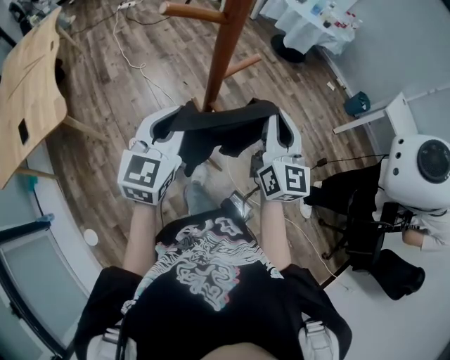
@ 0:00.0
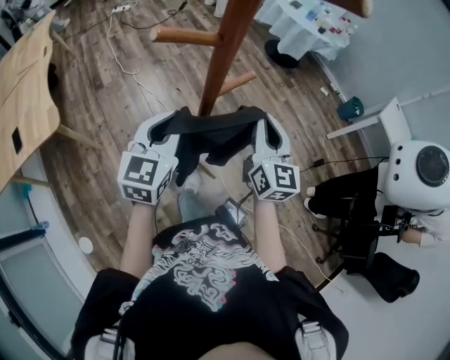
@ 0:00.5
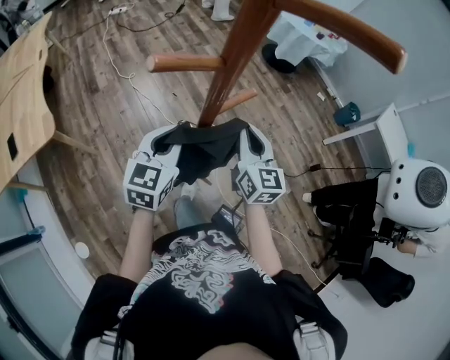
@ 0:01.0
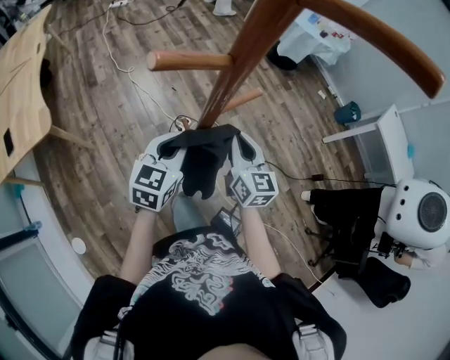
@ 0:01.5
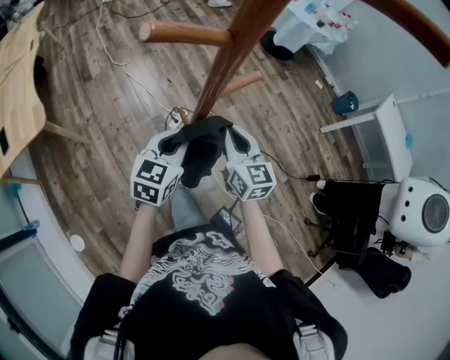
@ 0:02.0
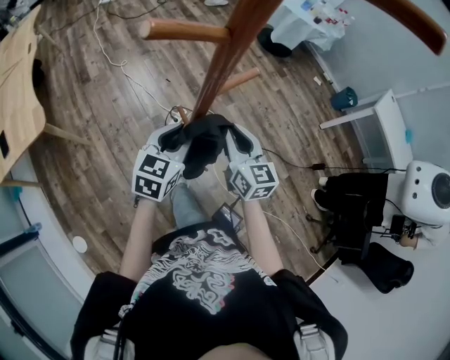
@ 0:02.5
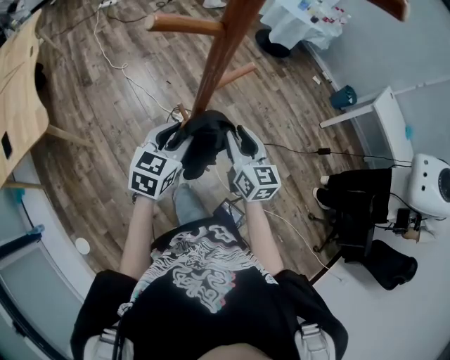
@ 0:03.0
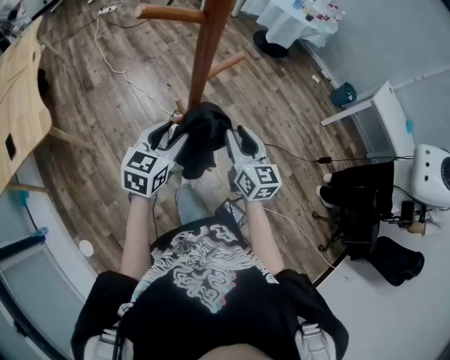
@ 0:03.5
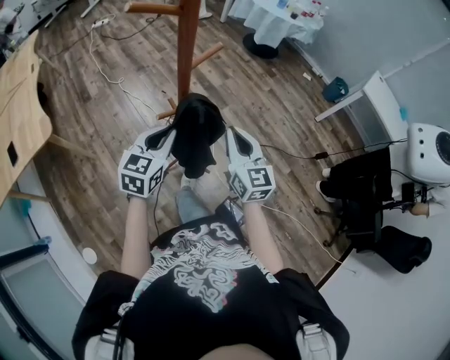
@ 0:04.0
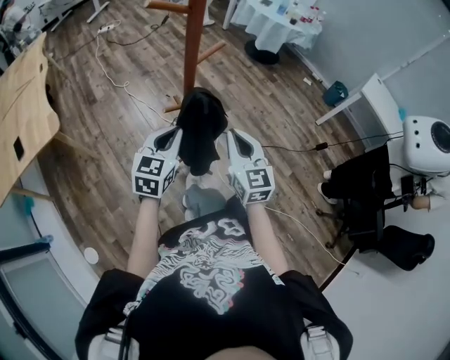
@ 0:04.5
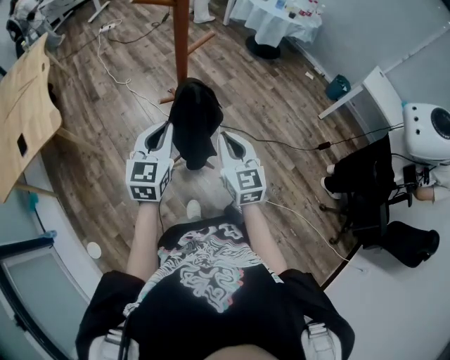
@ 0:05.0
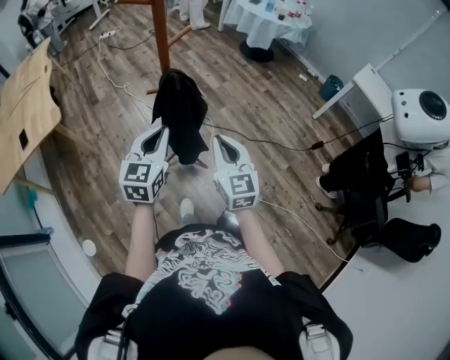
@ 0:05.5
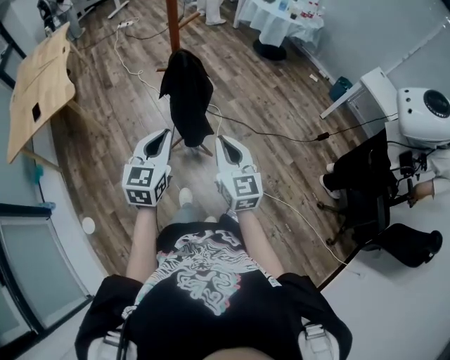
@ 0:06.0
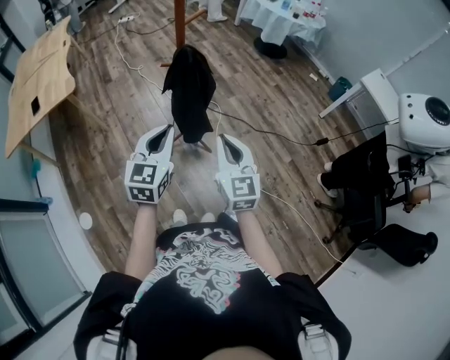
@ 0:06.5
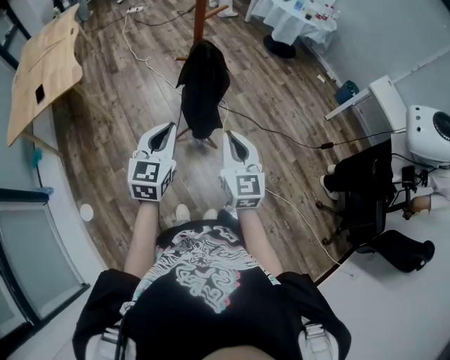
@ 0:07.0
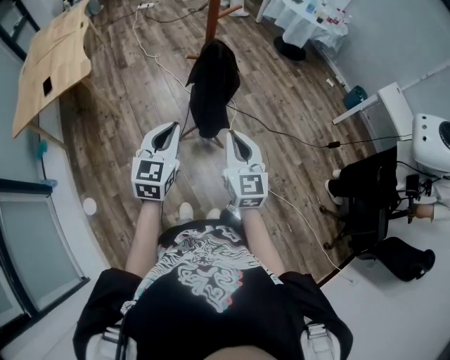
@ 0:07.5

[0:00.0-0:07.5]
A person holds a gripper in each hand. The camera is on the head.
0:00.0 to 0:02.0: The left gripper heads downward, covering about 15 cm. The right gripper moves downward and to the left, roughly 15 cm, and swivels some 20 degrees.
0:02.0 to 0:04.0: The right gripper is displaced backward and to the right by roughly 15 cm, and opens, then closes once more, while the left gripper is displaced backward by about 10 cm, and opens, then closes once more.
0:04.0 to 0:05.5: The left gripper goes about 20 cm backward, to the right and upward, while the right gripper is displaced backward by some 20 cm.
0:05.5 to 0:07.5: Both grippers move backward and to the left, about 15 cm.

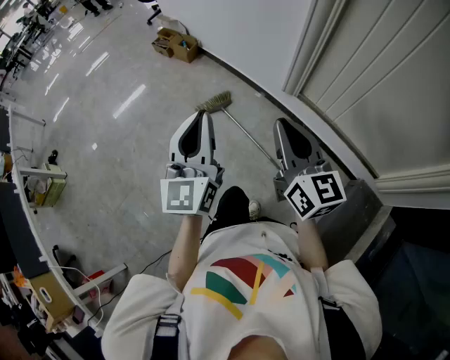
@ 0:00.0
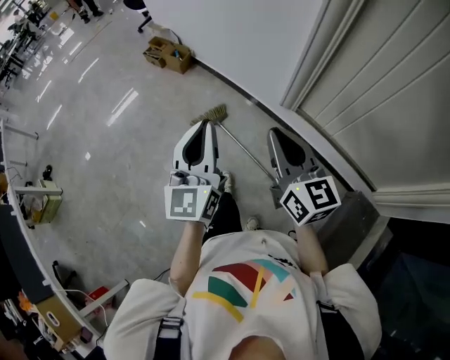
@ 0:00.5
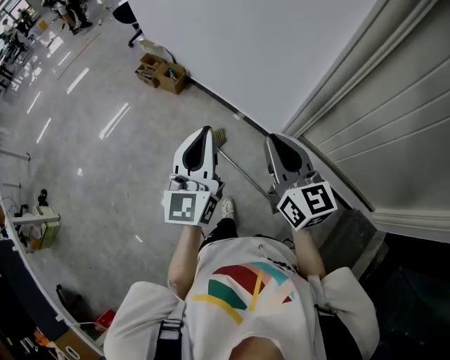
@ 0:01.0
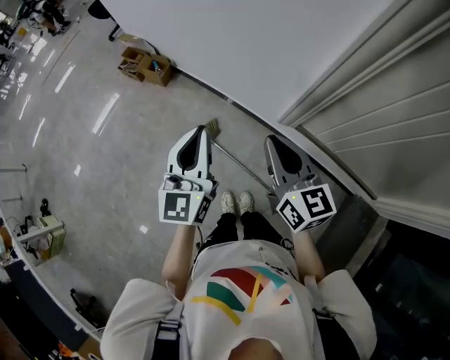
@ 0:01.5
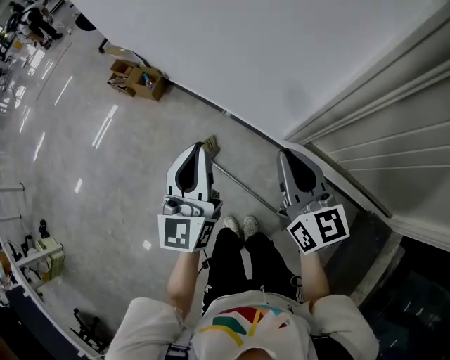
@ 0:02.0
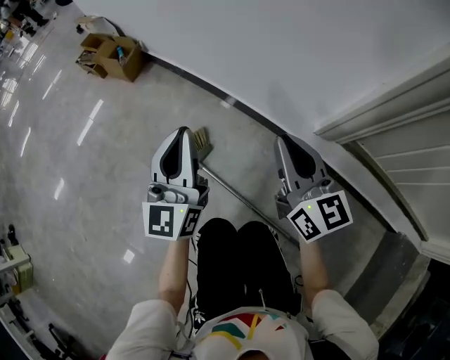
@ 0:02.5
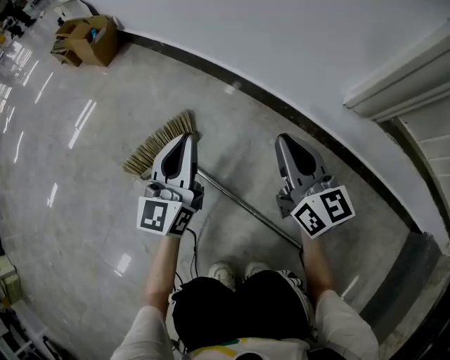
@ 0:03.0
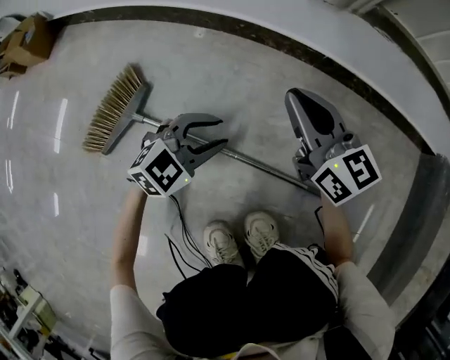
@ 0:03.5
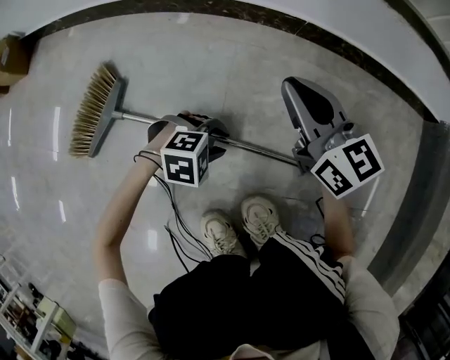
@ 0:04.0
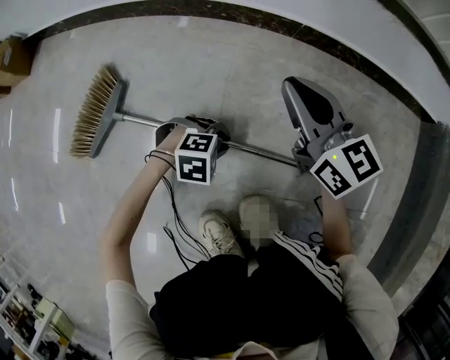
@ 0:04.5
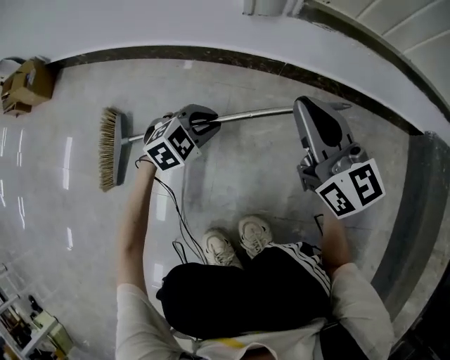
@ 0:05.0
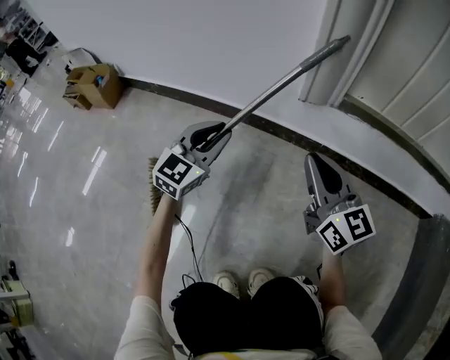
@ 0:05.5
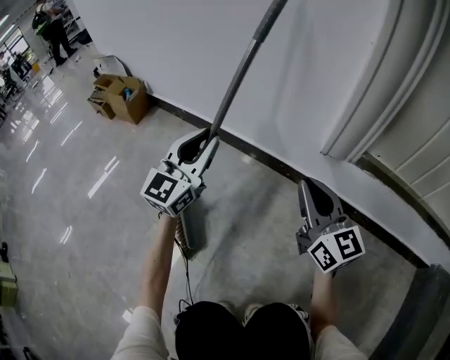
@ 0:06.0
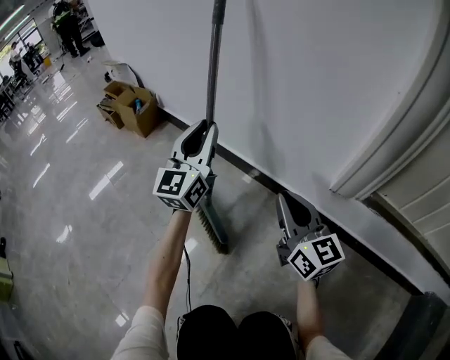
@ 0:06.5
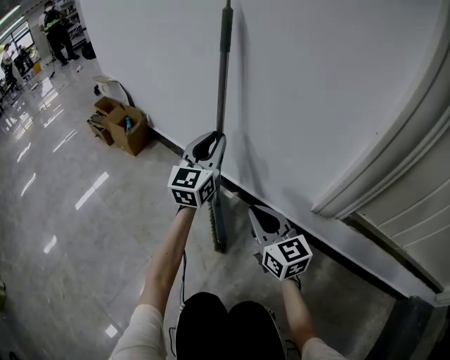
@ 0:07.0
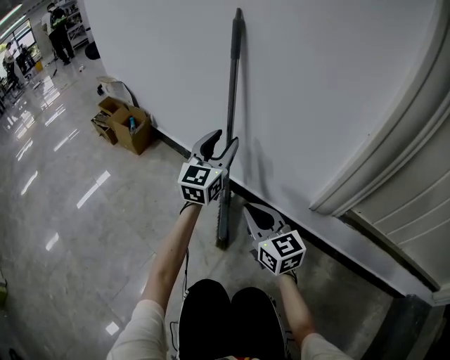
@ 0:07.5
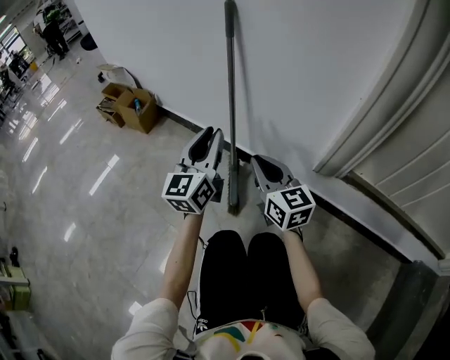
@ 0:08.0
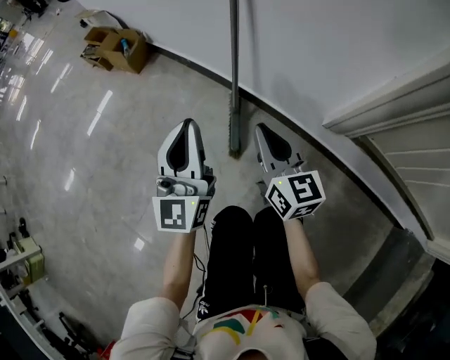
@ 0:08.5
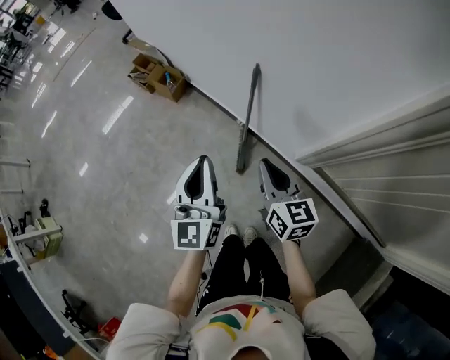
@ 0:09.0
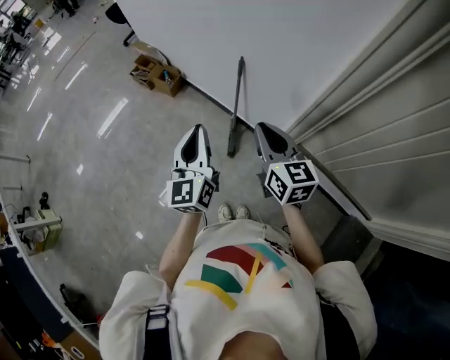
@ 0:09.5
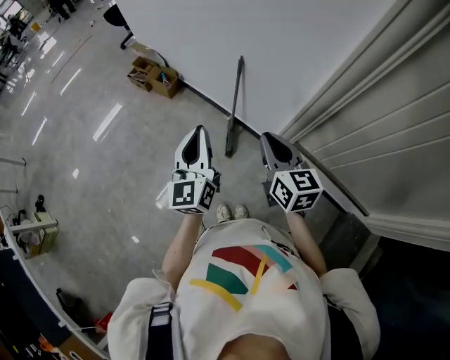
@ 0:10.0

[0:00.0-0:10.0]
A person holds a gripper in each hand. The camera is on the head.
0:00.0 to 0:02.0: The pair of grippers is taken forward, roughly 50 cm.
0:02.0 to 0:04.0: The grippers both shift downward by roughly 80 cm. The left gripper points its fingers roughly 70 degrees further downward, and opens its fingers.
0:04.0 to 0:06.0: The left gripper is displaced upward by roughly 40 cm, and tilts its fingers roughly 70 degrees upward; the right gripper moves upward, some 20 cm, and swivels roughly 20 degrees.
0:06.0 to 0:08.0: The left gripper shifts about 10 cm upward, moves about 15 cm forward and comes back, and turns by some 20 degrees, while the right gripper goes approximately 20 cm to the left, forward and upward.
0:08.0 to 0:10.0: The right gripper travels upward by roughly 60 cm, while the left gripper goes approximately 60 cm upward and backward, and closes.

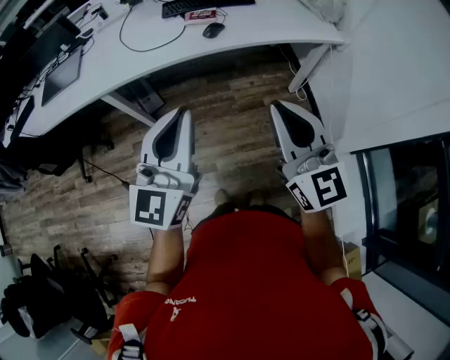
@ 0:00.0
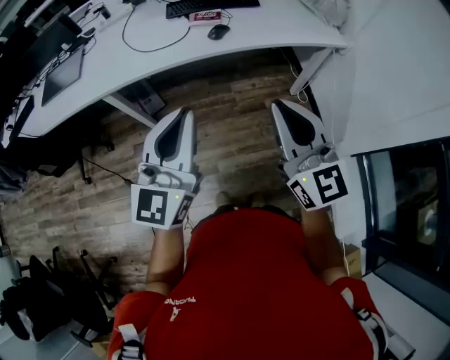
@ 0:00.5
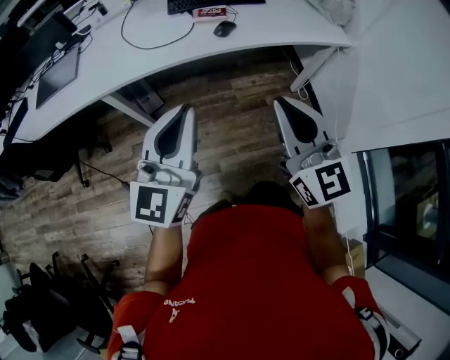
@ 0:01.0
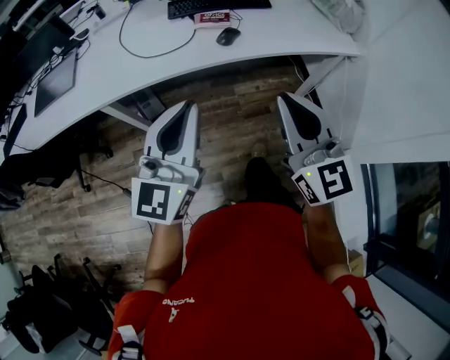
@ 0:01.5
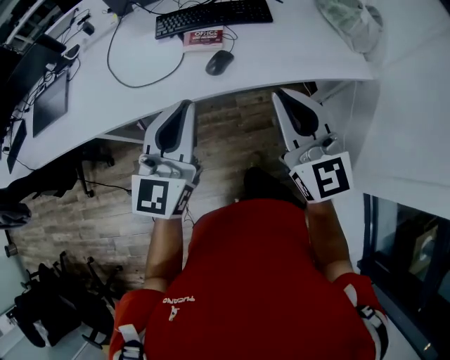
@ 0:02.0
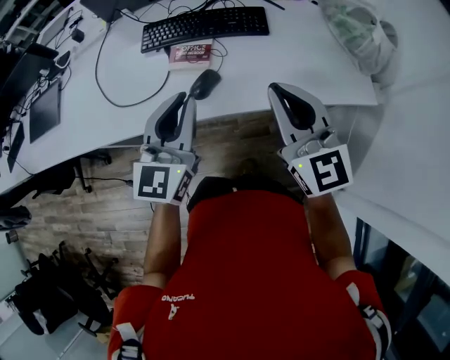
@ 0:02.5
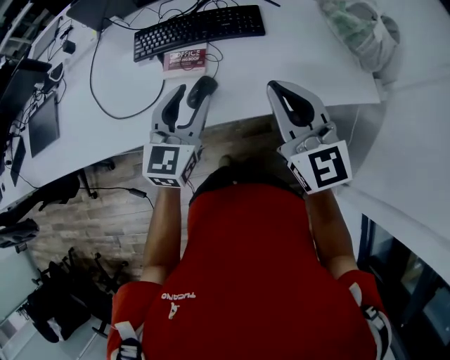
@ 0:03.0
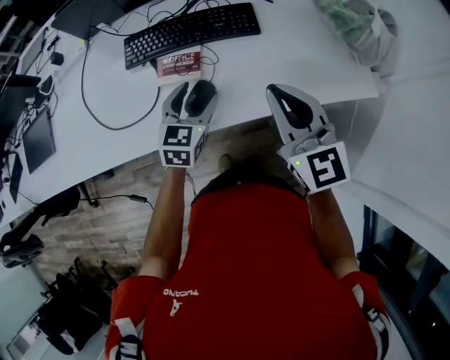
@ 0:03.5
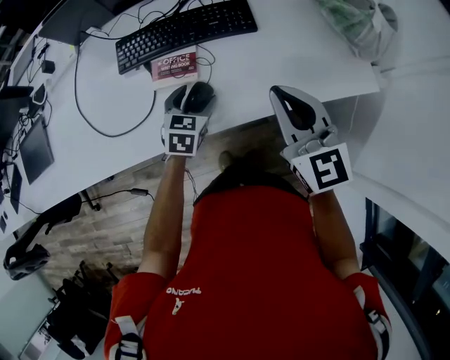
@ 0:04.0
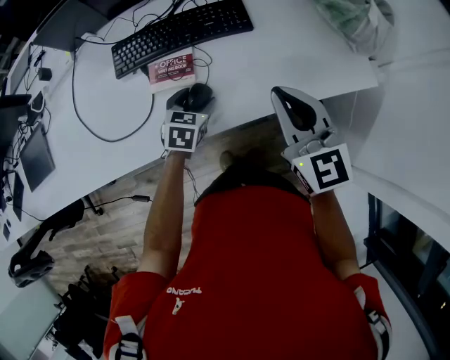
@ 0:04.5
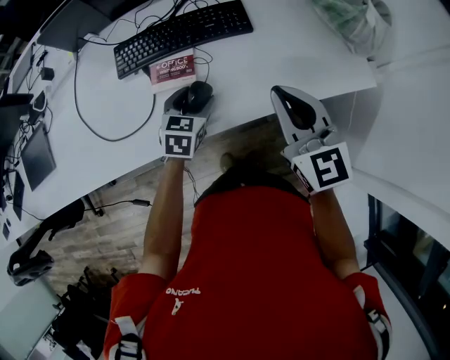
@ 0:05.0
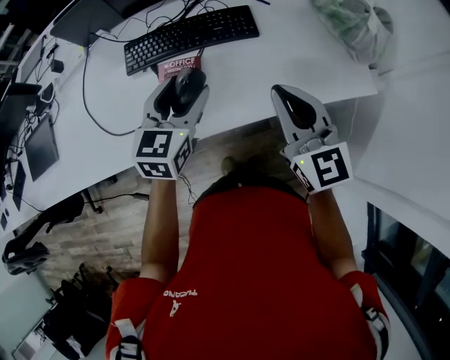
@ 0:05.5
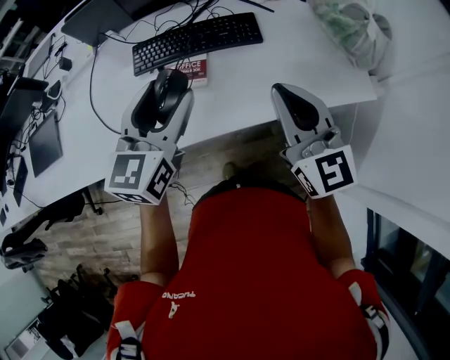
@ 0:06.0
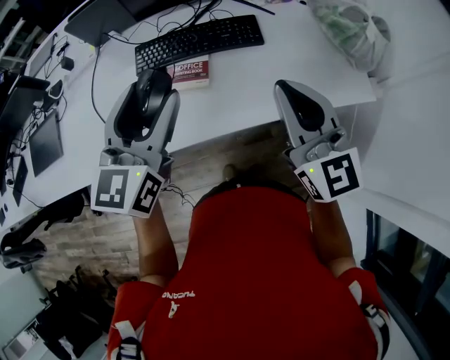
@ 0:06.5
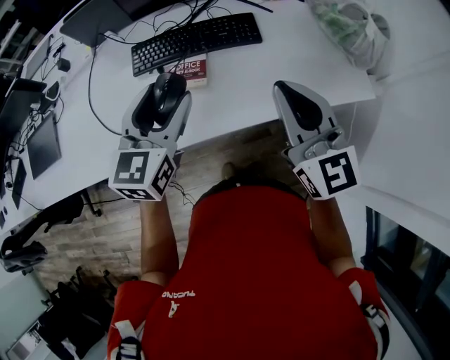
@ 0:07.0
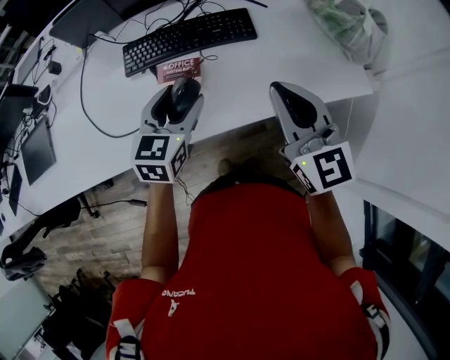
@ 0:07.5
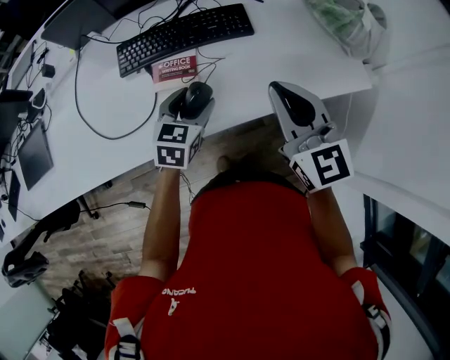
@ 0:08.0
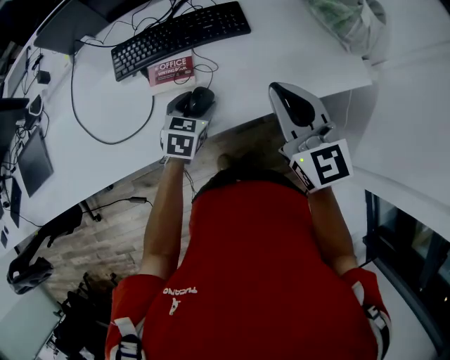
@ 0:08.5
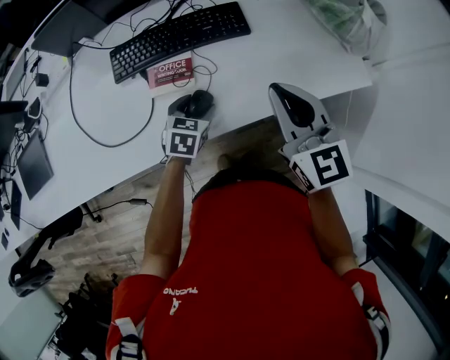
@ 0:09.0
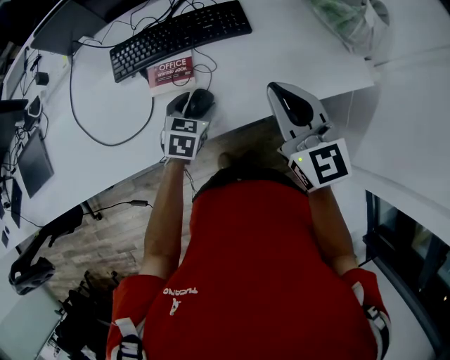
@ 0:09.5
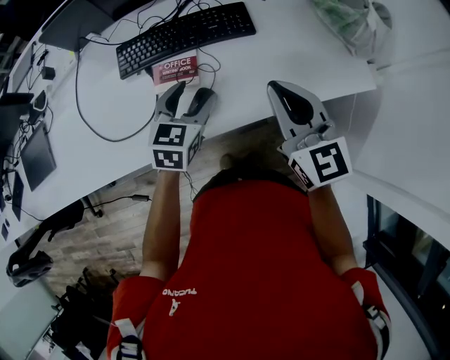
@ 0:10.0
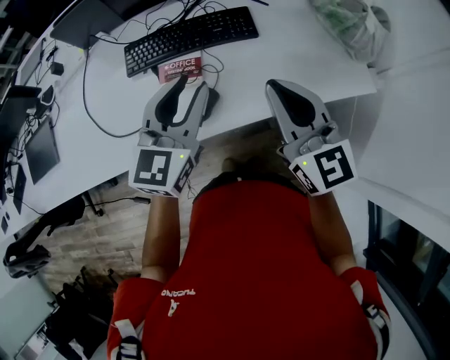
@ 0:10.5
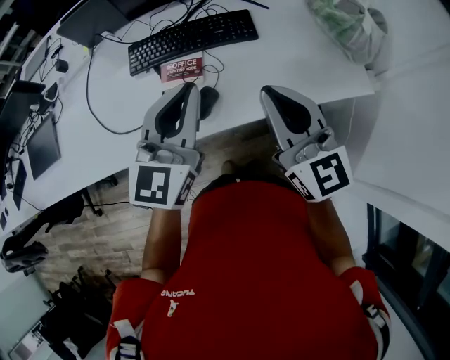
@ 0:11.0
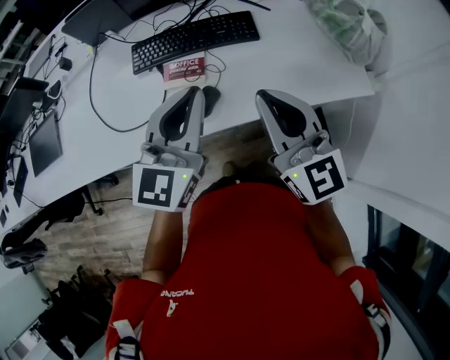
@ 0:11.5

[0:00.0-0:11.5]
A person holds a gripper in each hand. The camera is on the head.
0:00.0 to 0:02.0: The two grippers go roughly 30 cm forward.
0:02.0 to 0:04.0: The left gripper heads downward and forward, covering approximately 35 cm, points its fingers about 50 degrees further downward, and opens up, while the right gripper moves forward and downward, approximately 20 cm.
0:04.0 to 0:06.0: The left gripper is displaced upward by approximately 25 cm, and angles its fingers upward, by approximately 30 degrees. The right gripper is displaced upward by about 5 cm.
0:06.0 to 0:07.5: The left gripper goes some 10 cm downward.
0:07.5 to 0:09.5: The left gripper shifts about 15 cm downward, and rotates approximately 20 degrees.
0:09.5 to 0:11.5: The left gripper is displaced upward by about 30 cm, points its fingers approximately 50 degrees further upward, and closes its fingers. Meanwhile the right gripper moves upward and backward, approximately 10 cm.
